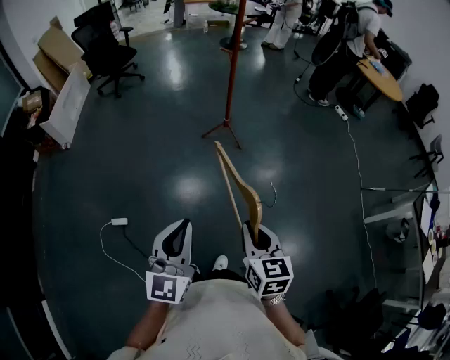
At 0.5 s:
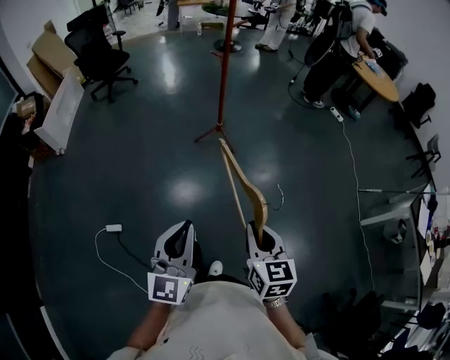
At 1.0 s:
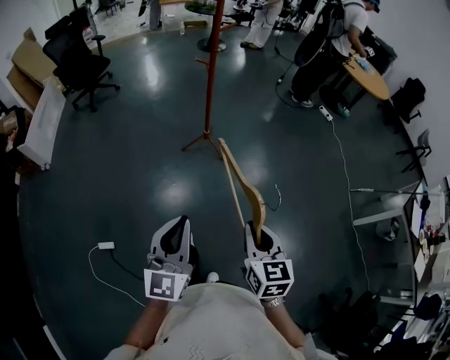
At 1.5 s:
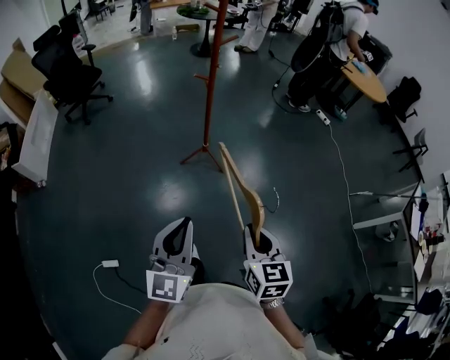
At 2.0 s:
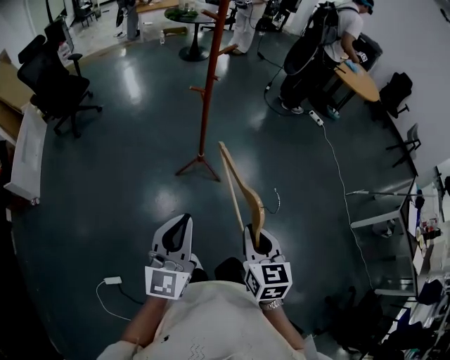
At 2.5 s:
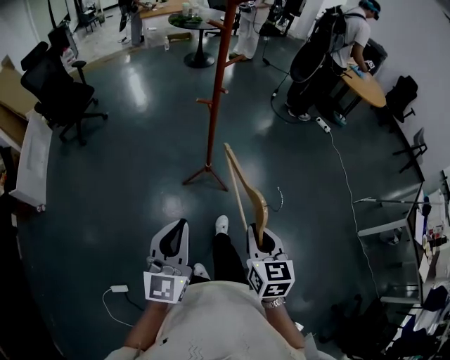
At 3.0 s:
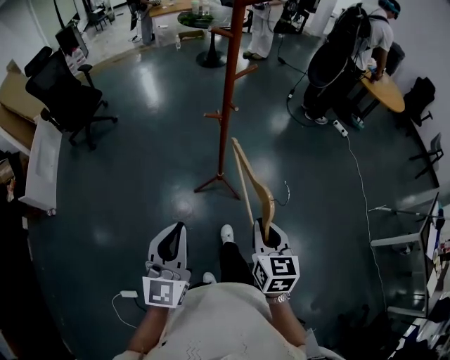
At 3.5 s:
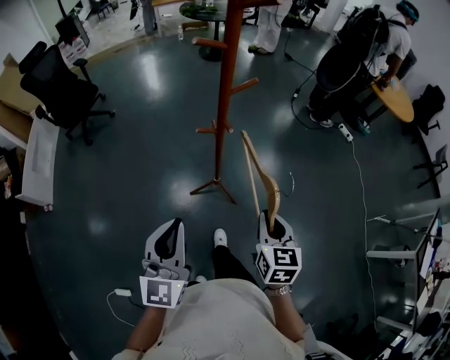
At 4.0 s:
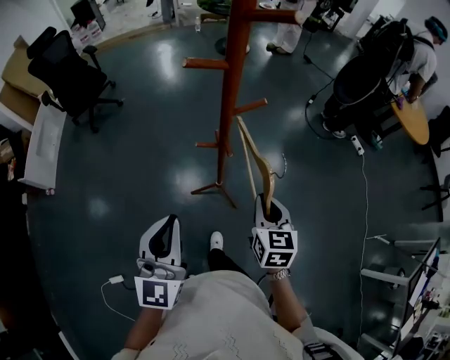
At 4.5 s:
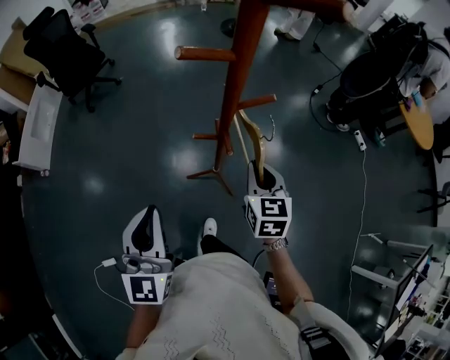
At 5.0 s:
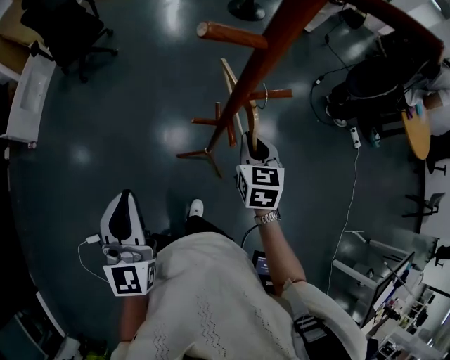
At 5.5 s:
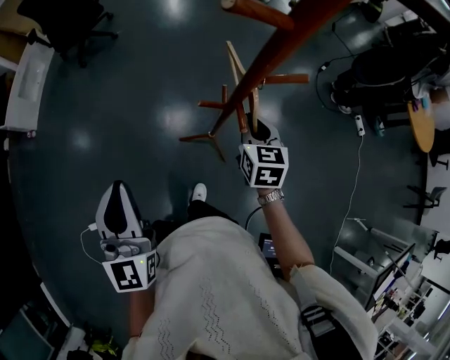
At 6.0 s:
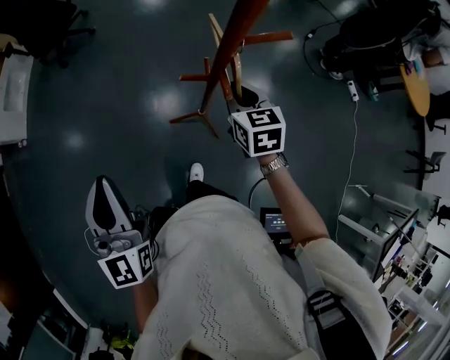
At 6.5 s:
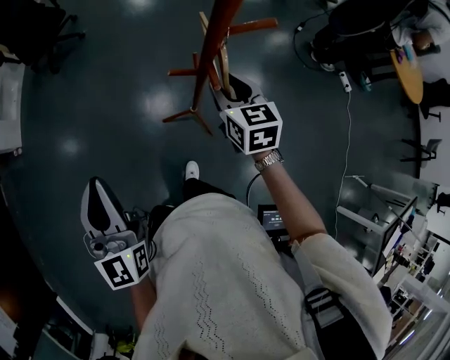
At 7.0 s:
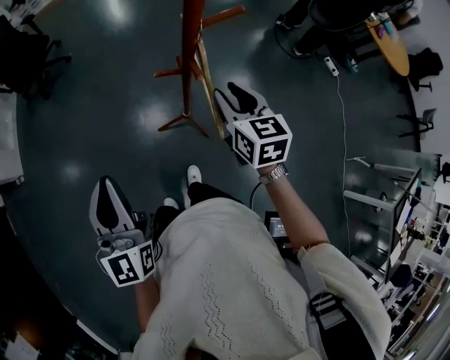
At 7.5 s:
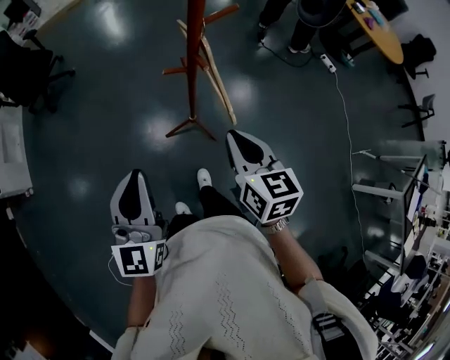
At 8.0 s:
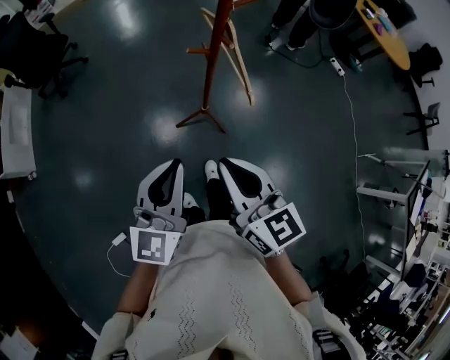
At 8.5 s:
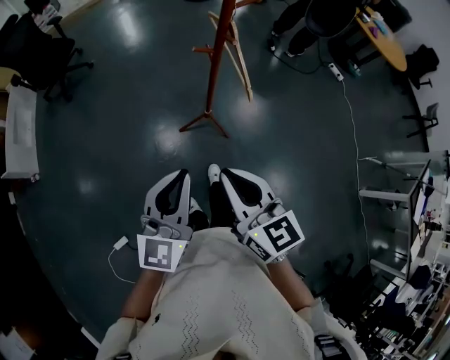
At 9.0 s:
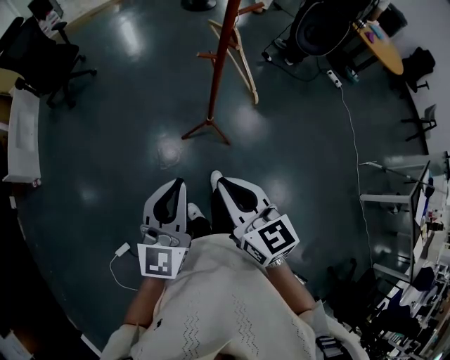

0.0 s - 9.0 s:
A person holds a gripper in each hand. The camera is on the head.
0.0 s - 2.0 s: Both grippers travel together forward, roughly 35 cm.
2.0 s - 4.5 s: Both grippers travel together forward, about 50 cm. The left gripper swivels approximately 30 degrees.
4.5 s - 7.0 s: The right gripper goes forward and returns, some 10 cm each way, and opens up; the left gripper heads to the left, covering roughly 5 cm.
7.0 s - 9.0 s: The left gripper moves backward, approximately 20 cm, and swivels some 30 degrees. Meanwhile the right gripper travels backward and to the left by about 40 cm, and closes its fingers.

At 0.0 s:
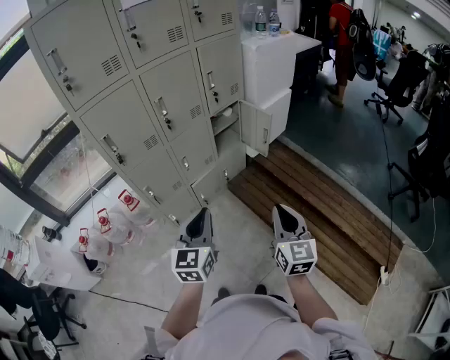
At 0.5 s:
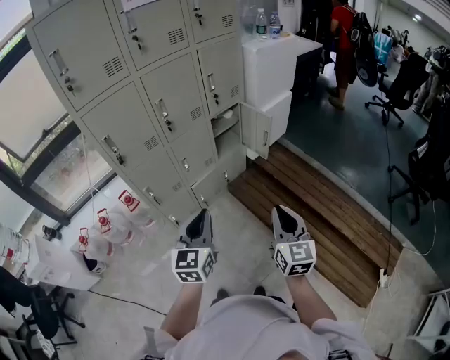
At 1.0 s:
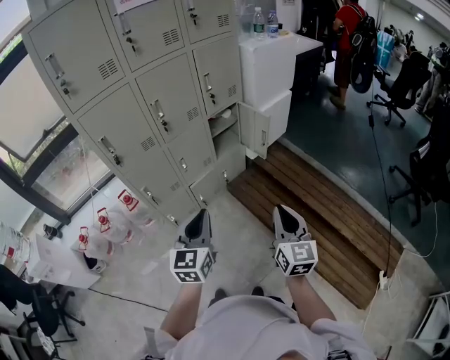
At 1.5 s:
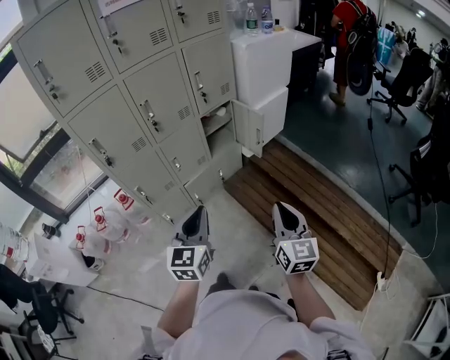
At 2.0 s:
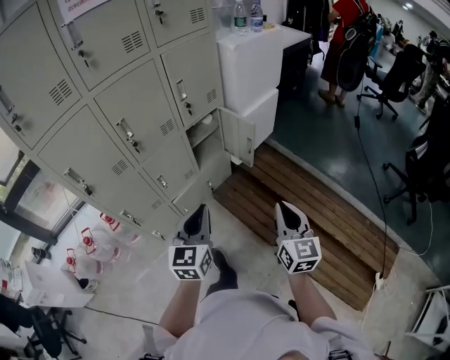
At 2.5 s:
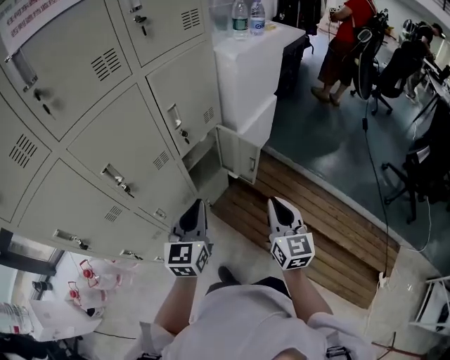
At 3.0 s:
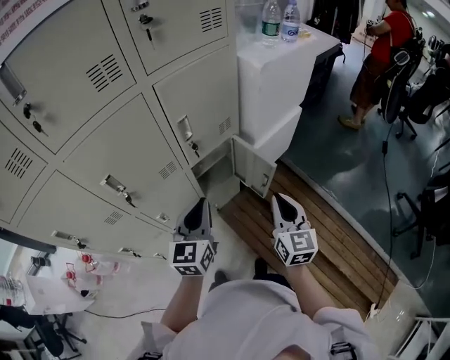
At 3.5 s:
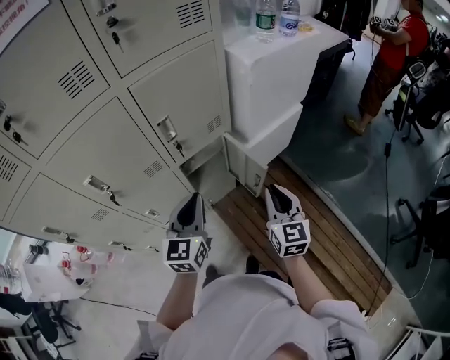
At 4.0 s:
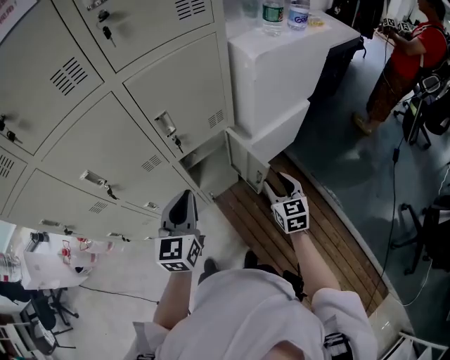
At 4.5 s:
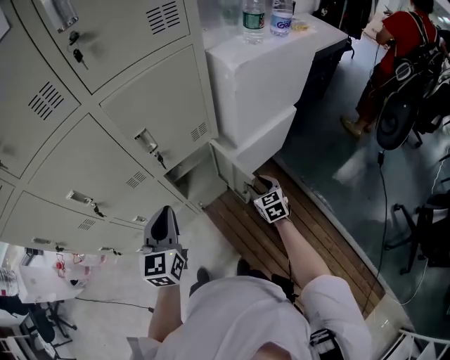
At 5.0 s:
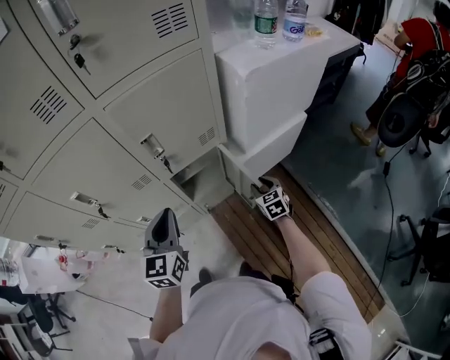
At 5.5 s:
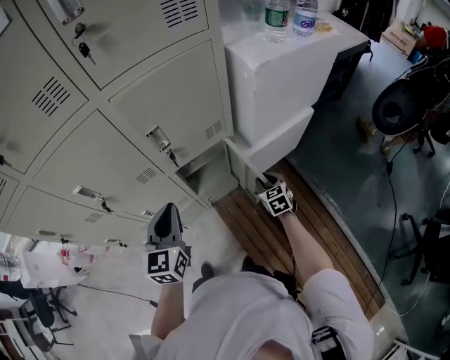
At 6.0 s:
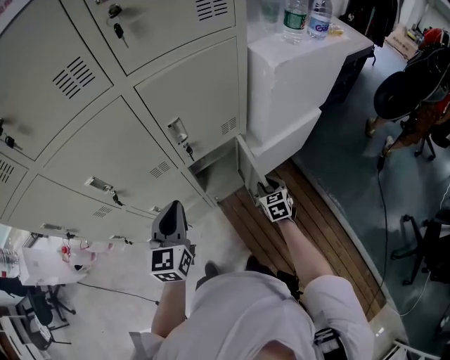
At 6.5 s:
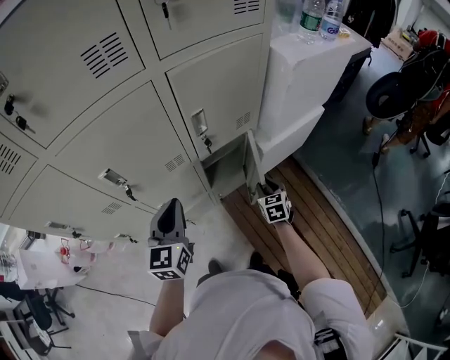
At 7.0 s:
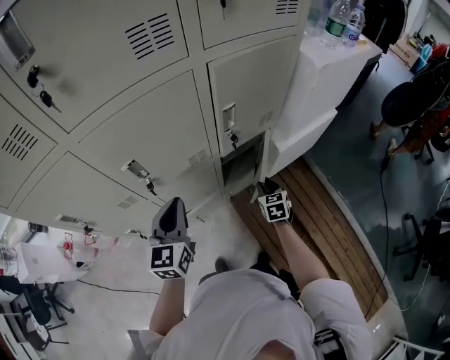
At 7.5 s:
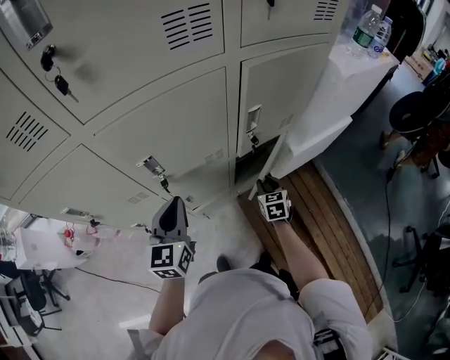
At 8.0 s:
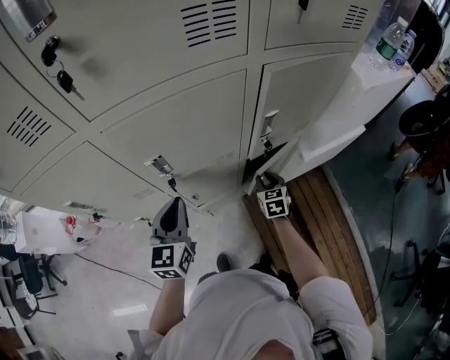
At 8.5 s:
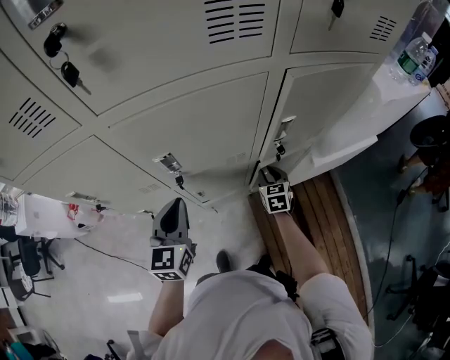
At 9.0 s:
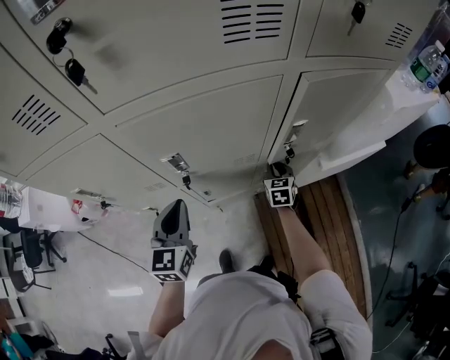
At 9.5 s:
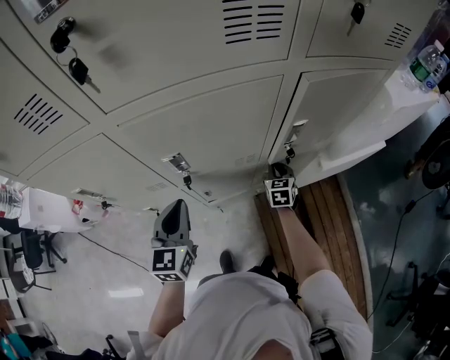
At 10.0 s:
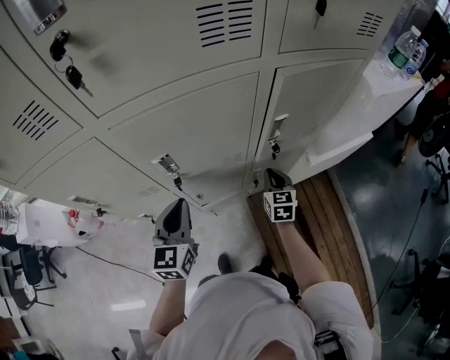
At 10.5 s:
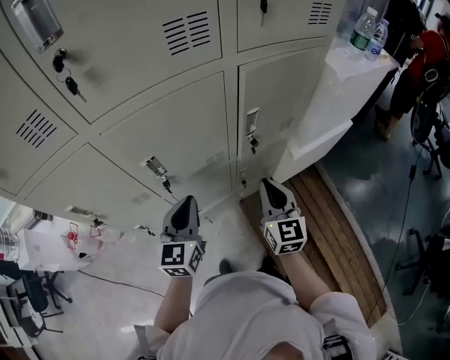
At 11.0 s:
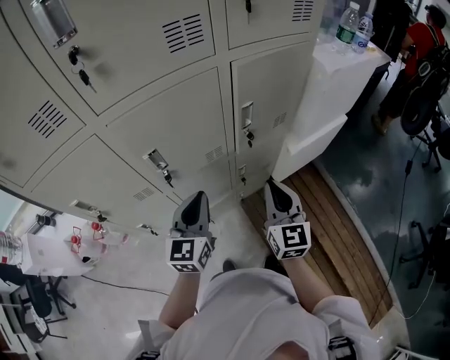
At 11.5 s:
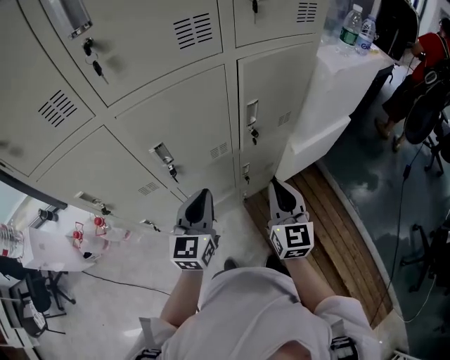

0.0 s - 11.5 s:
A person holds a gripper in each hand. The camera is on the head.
0.0 s - 2.0 s: Both grippers move forward and to the right, roughly 20 cm.
2.0 s - 4.0 s: Both grippers travel together forward, roughly 40 cm. The right gripper turns by approximately 30 degrees, and opens.
4.0 s - 6.0 s: The left gripper heads to the left, covering approximately 5 cm; the right gripper travels downward and forward by some 15 cm.
6.0 s - 7.5 s: Both grippers travel together to the left, some 20 cm.
7.5 s - 9.5 s: The left gripper heads to the left, covering about 5 cm. Meanwhile the right gripper heads forward and to the left, covering about 10 cm, and closes its fingers.
9.5 s - 11.5 s: The right gripper moves upward and backward, some 35 cm, and points its fingers some 30 degrees further upward. The left gripper goes approximately 10 cm to the right.

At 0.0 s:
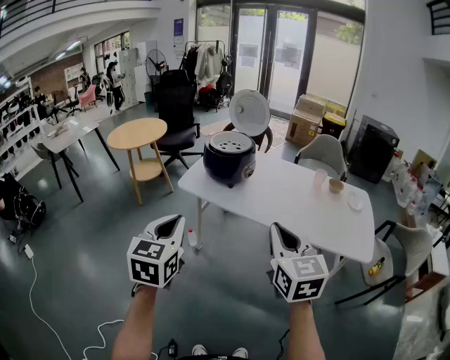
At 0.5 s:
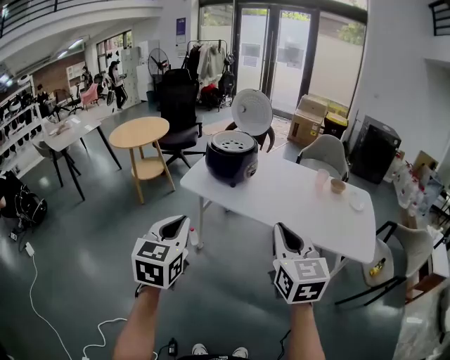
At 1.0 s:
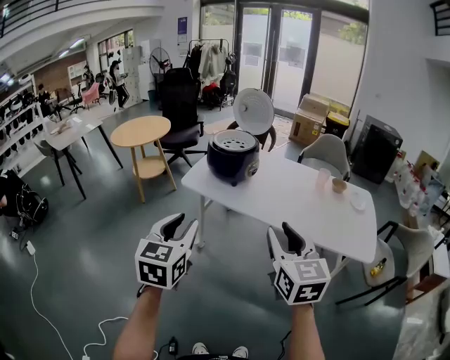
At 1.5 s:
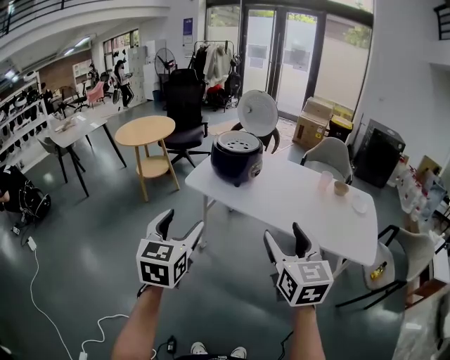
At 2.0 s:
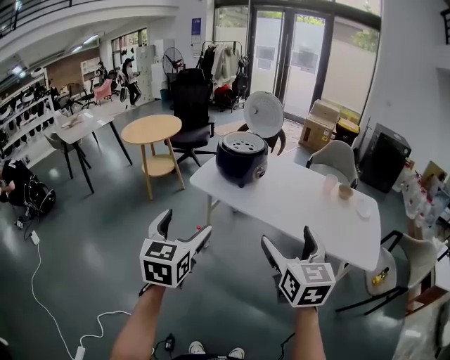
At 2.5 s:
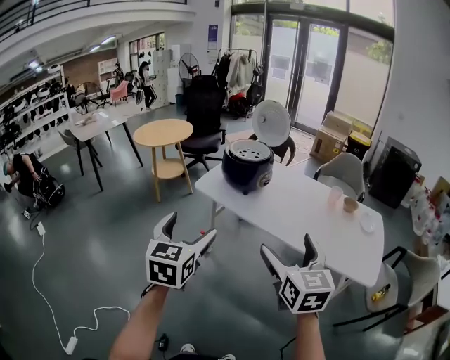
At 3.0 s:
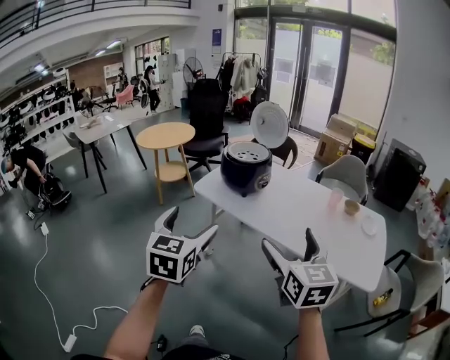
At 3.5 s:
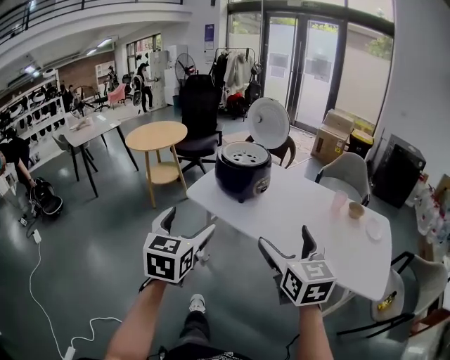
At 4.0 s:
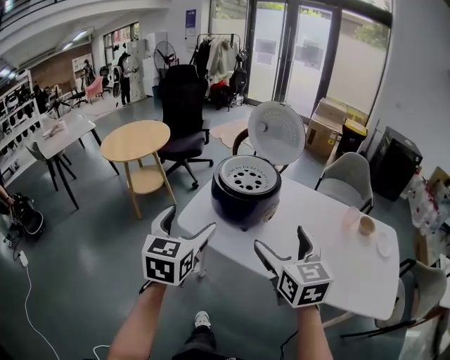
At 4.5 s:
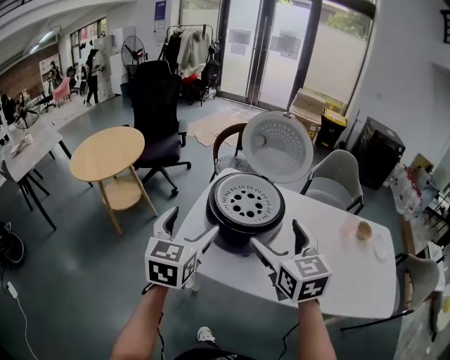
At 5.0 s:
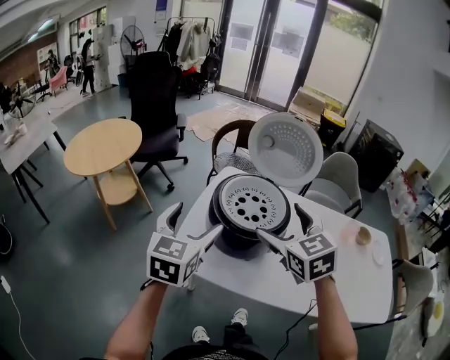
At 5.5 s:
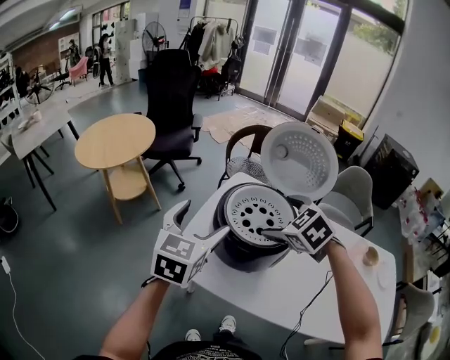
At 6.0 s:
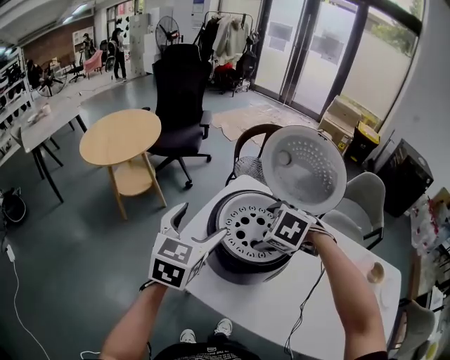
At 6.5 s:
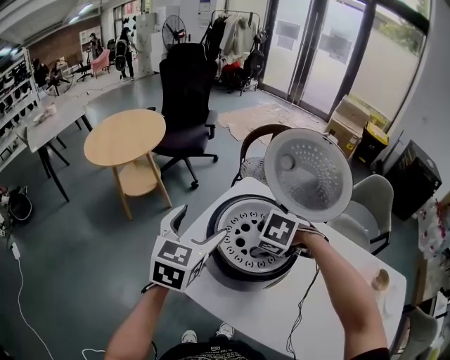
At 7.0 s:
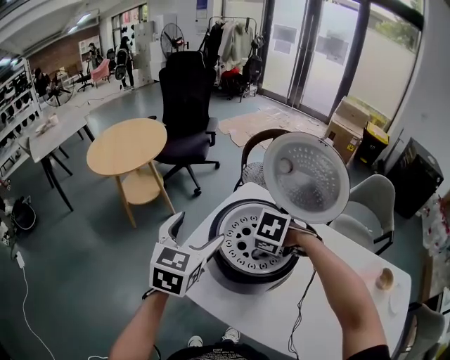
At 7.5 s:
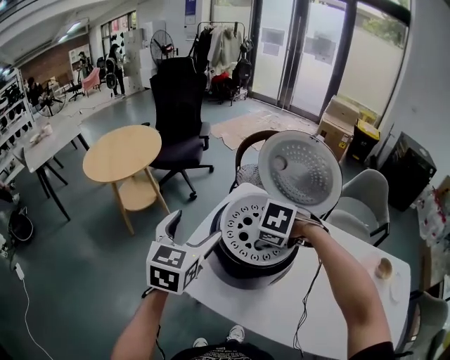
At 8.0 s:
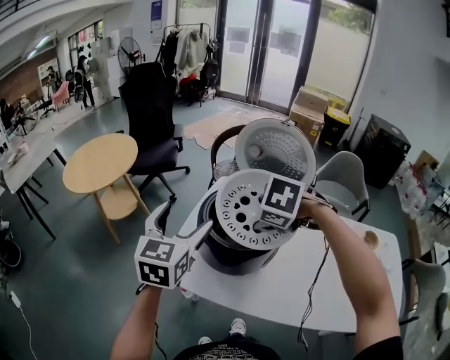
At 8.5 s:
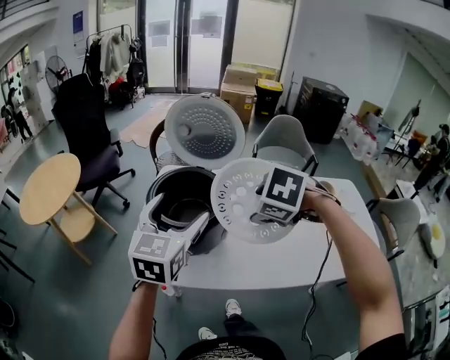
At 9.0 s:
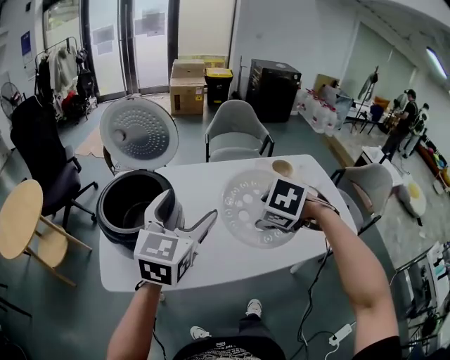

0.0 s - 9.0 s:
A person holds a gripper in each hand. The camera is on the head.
0.0 s - 2.0 s: The left gripper opens up. The right gripper opens up.
2.0 s - 4.5 s: The pair of grippers is taken forward, roughly 70 cm.
4.5 s - 7.0 s: The left gripper ends up about 20 cm from where it was, while the right gripper shifts by some 30 cm, angles its fingers downward, by some 70 degrees, and closes its fingers.
7.0 s - 9.0 s: The right gripper moves about 40 cm, and swivels roughly 40 degrees; the left gripper changes place by roughly 40 cm, and turns by some 40 degrees.
